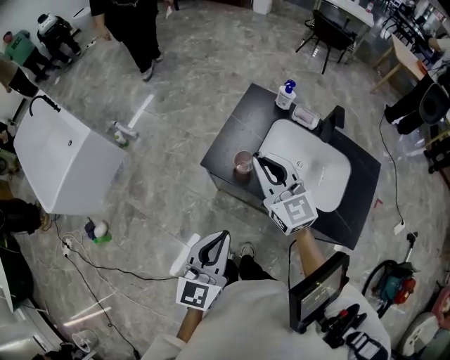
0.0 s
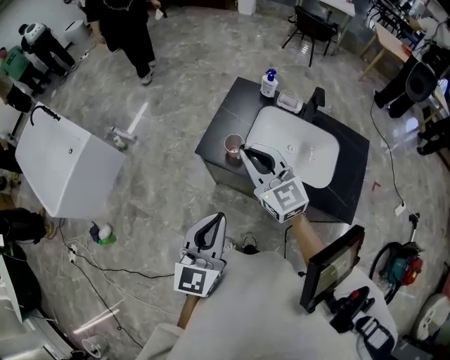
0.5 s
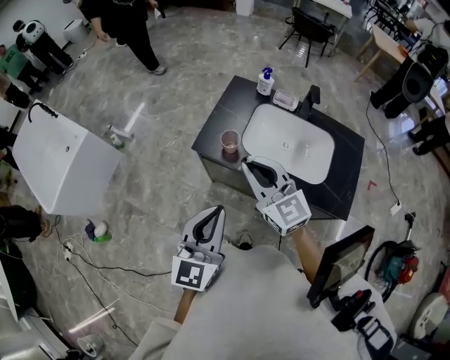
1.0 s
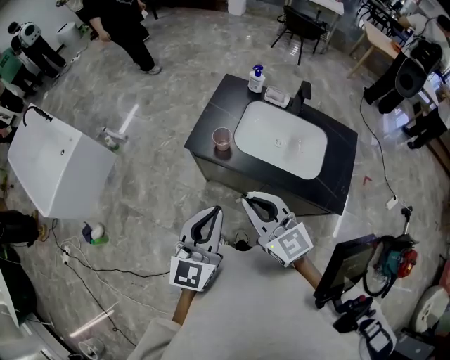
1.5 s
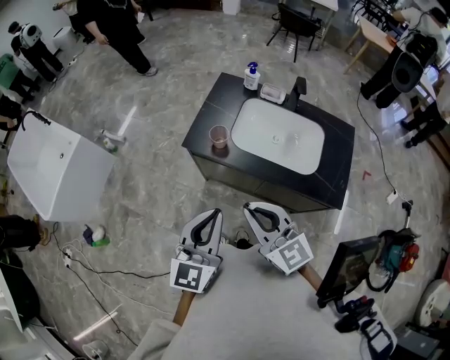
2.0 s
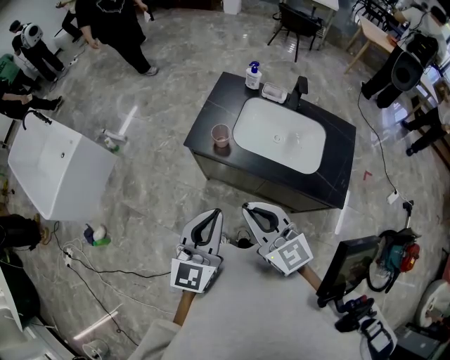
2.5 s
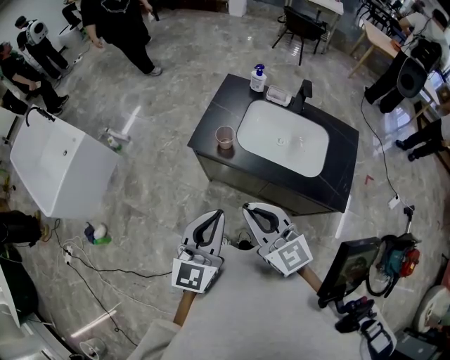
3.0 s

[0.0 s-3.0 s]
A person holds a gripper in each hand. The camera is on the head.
0.0 to 1.5 s: The left gripper heads backward, covering approximately 5 cm, while the right gripper heads backward, covering some 20 cm.
1.5 to 3.0 s: There are only small adjustments of the grippers.

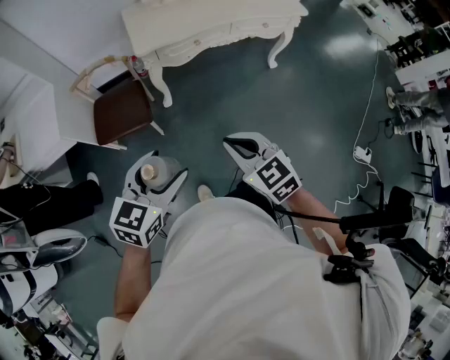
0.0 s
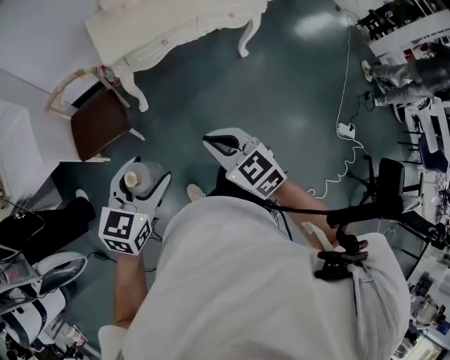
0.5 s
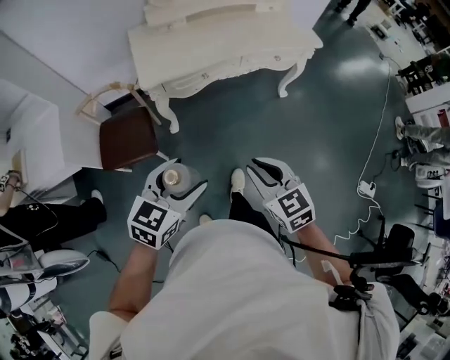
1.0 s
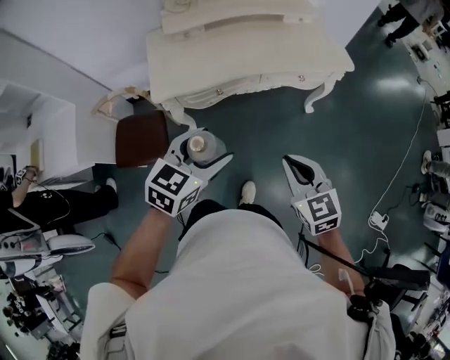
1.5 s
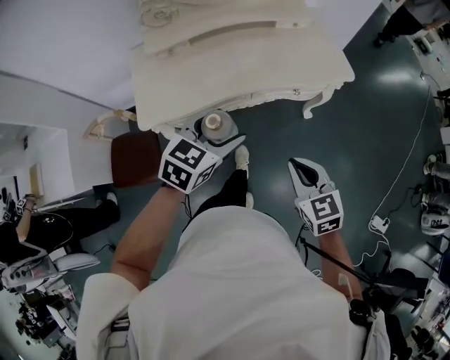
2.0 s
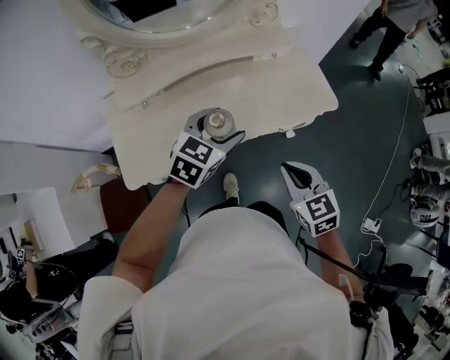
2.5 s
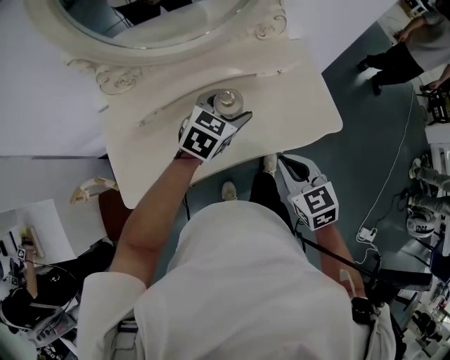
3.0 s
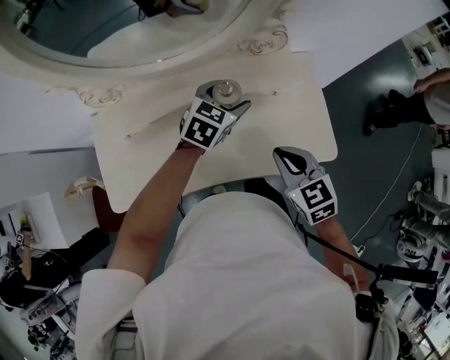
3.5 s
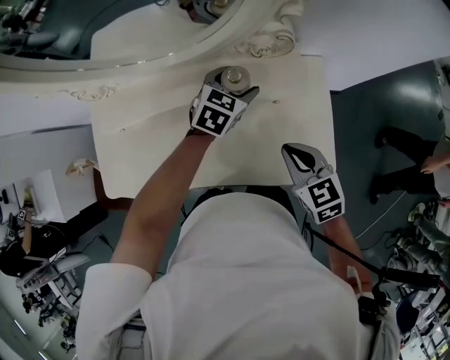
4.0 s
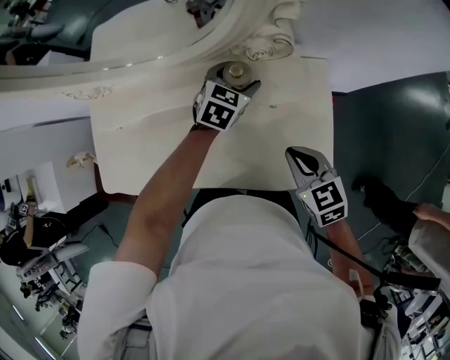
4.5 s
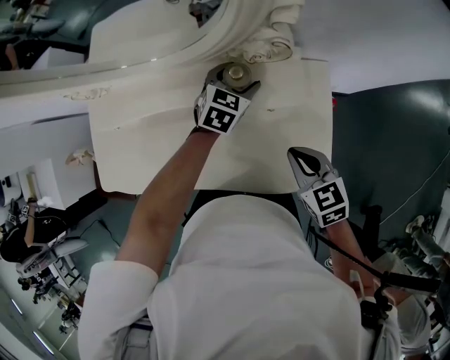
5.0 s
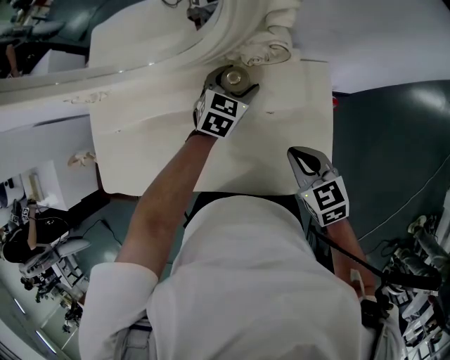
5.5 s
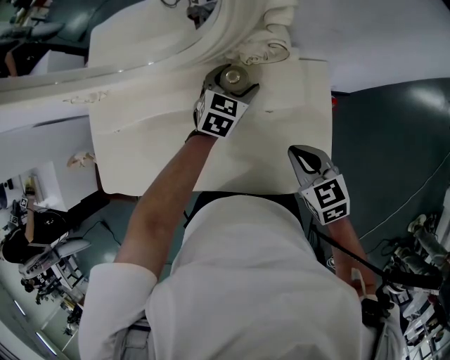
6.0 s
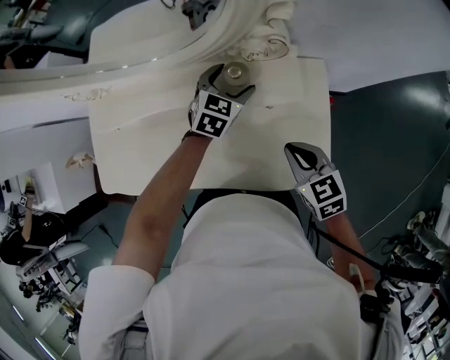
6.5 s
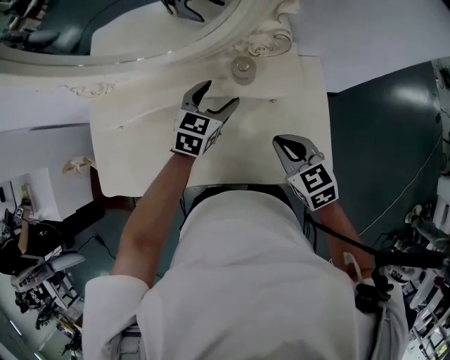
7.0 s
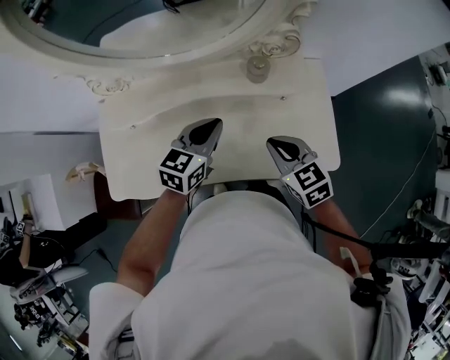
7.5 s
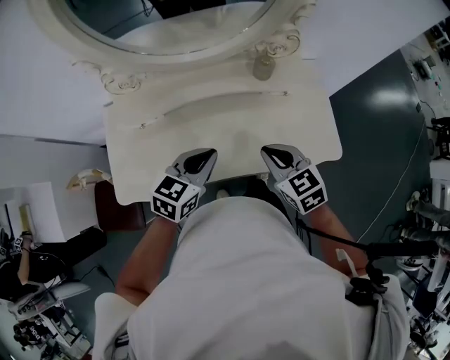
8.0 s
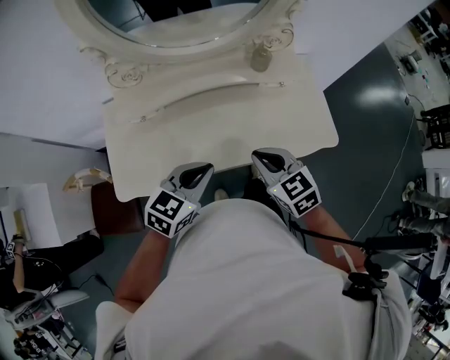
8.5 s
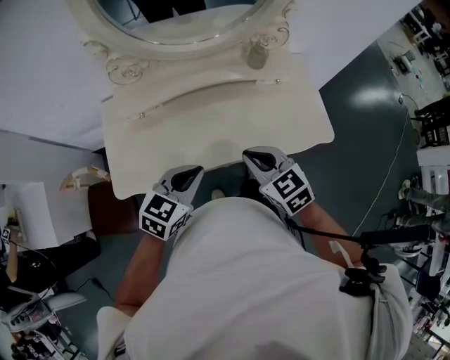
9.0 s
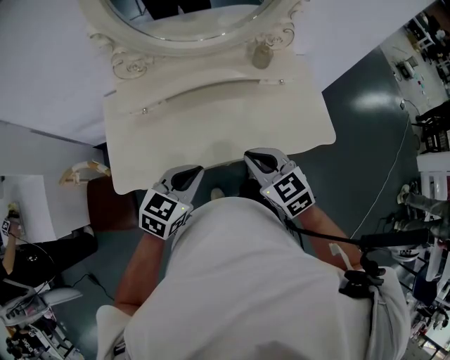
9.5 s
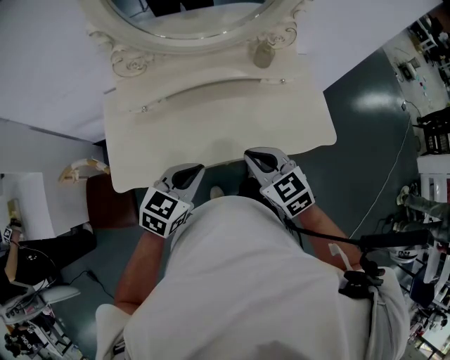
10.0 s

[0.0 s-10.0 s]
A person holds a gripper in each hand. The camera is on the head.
0.0 to 2.0 s: The two grippers travel together, forward and to the right, roughly 50 cm.
2.0 to 4.0 s: The pair of grippers is taken forward, about 60 cm.
4.0 to 6.0 s: The right gripper is displaced to the right by roughly 5 cm; the left gripper travels downward by some 5 cm.
6.0 to 8.0 s: The right gripper moves to the left and backward, approximately 25 cm. The left gripper travels backward and to the left by approximately 40 cm, swivels some 20 degrees, and closes up.
8.0 to 10.0 s: The grippers both shift backward and to the left by roughly 10 cm.

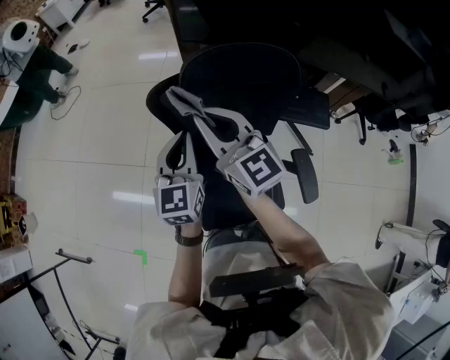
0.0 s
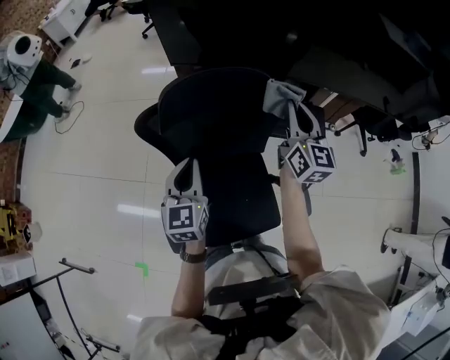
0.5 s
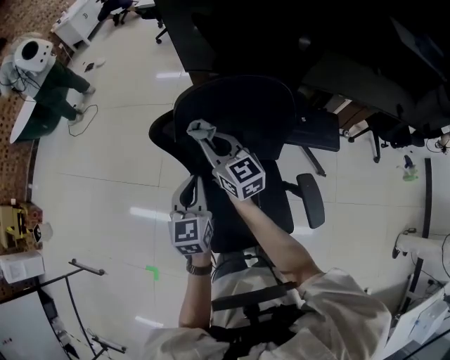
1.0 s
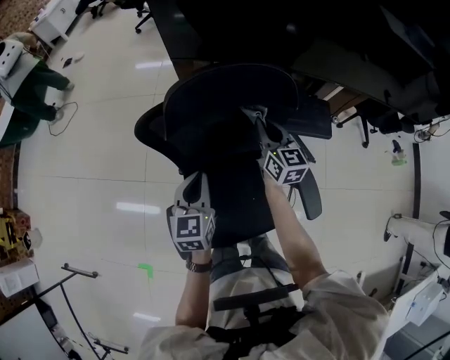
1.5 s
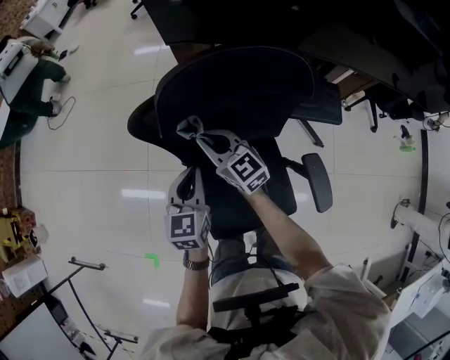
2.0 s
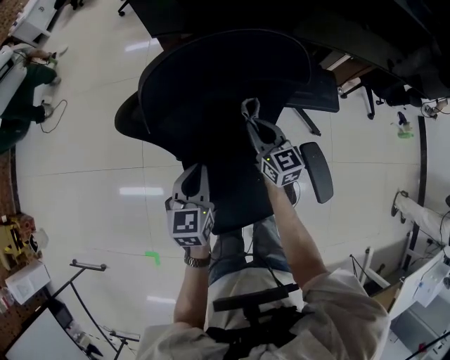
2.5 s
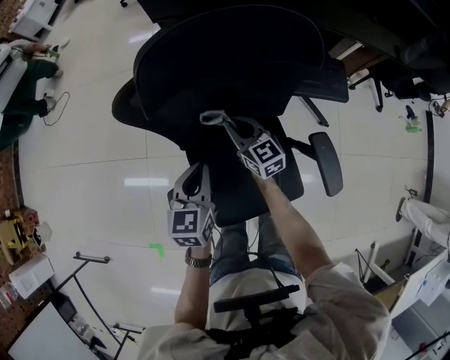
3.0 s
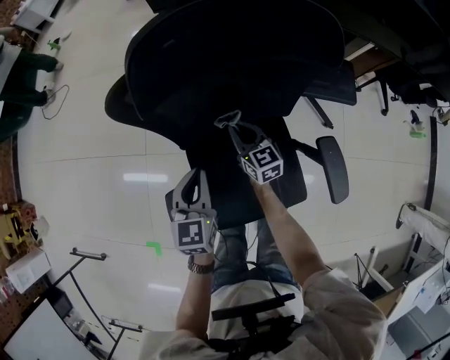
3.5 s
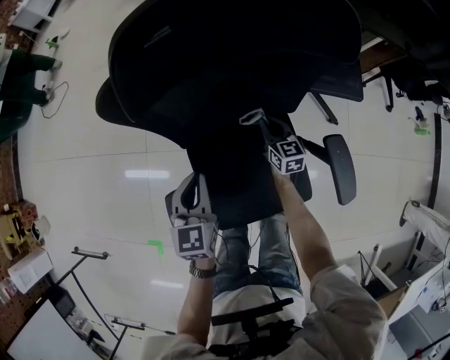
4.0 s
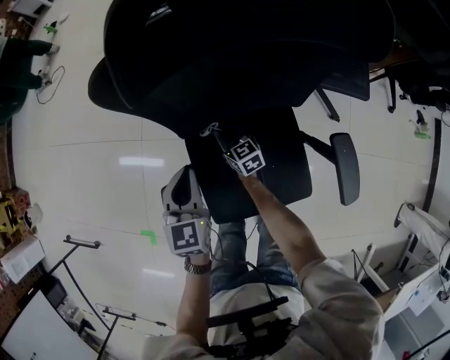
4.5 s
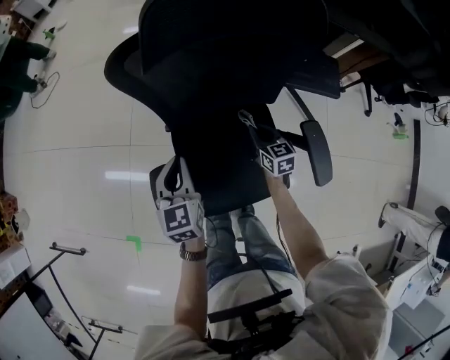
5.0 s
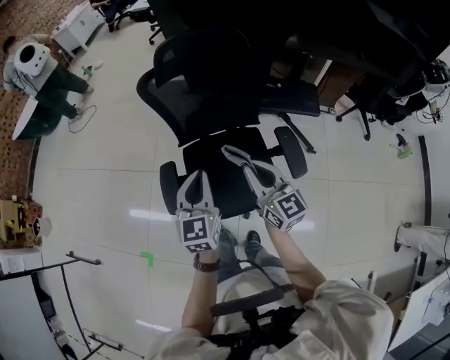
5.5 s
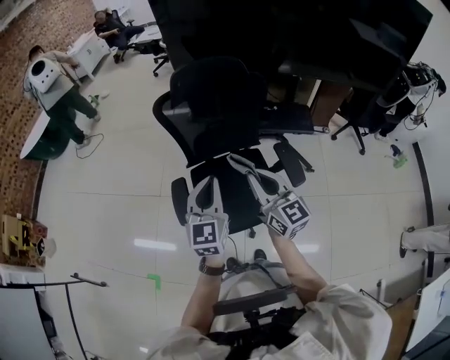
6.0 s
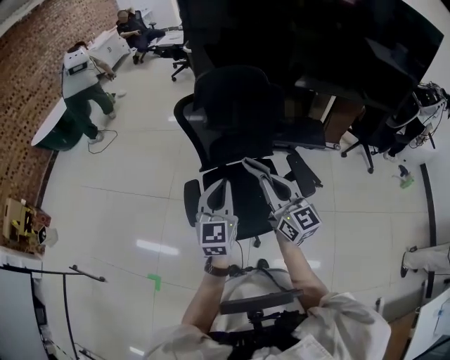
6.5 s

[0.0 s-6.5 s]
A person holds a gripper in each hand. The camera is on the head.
0.0 to 2.0 s: The right gripper swings left and right, some 30 cm each way, with 3 reversals, while the left gripper travels downward by approximately 15 cm.
2.0 to 4.5 s: The right gripper travels downward by some 30 cm, and changes its angle by approximately 20 degrees, while the left gripper travels downward by some 10 cm.
4.5 to 6.5 s: The left gripper travels upward and backward by approximately 40 cm, and changes its angle by approximately 30 degrees; the right gripper goes approximately 60 cm upward and backward, and tips its fingers upward by about 40 degrees.

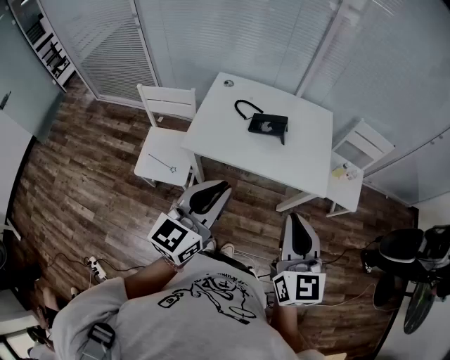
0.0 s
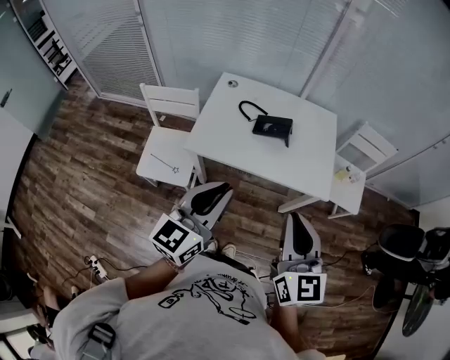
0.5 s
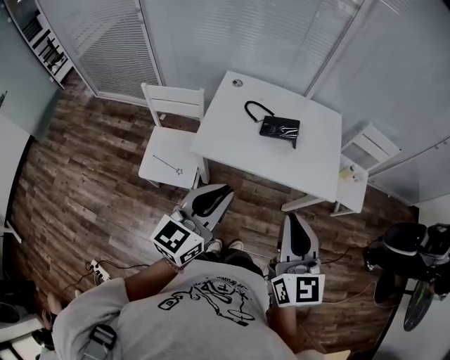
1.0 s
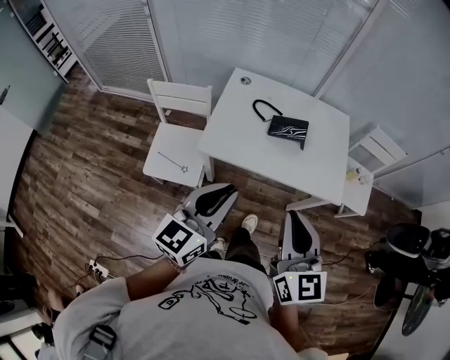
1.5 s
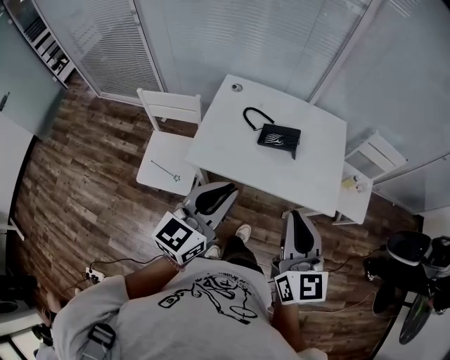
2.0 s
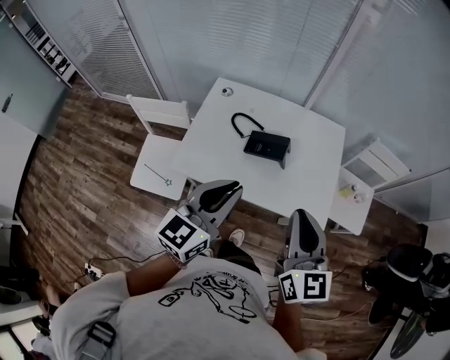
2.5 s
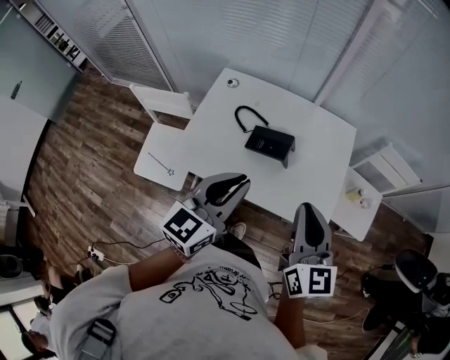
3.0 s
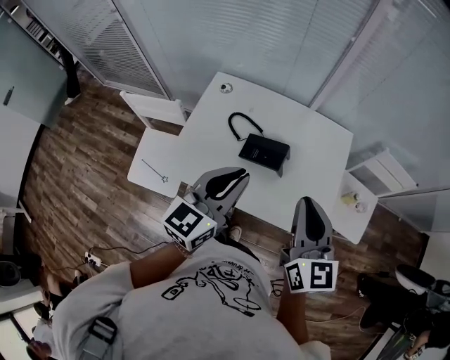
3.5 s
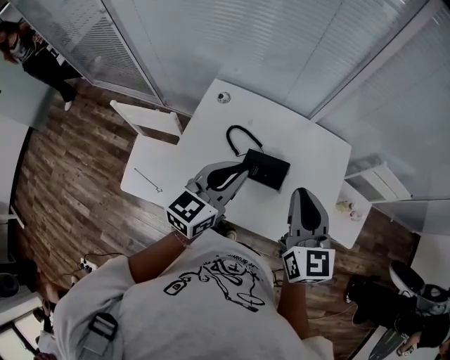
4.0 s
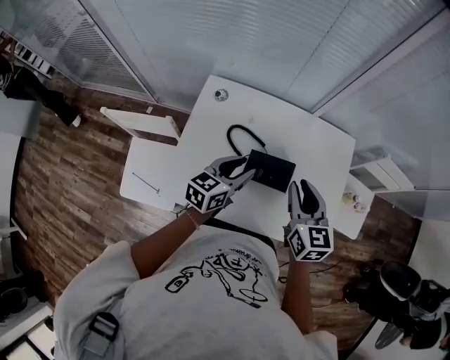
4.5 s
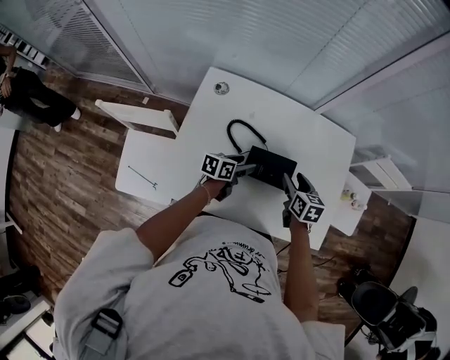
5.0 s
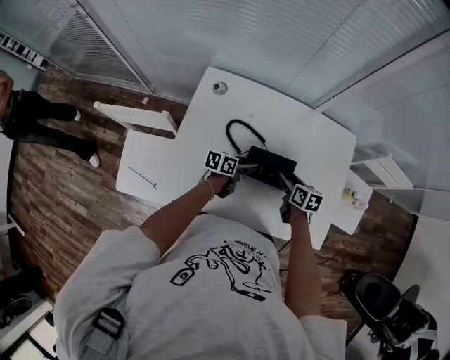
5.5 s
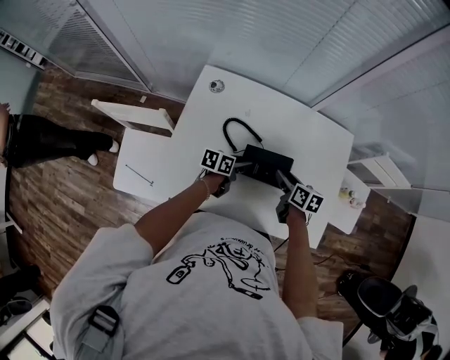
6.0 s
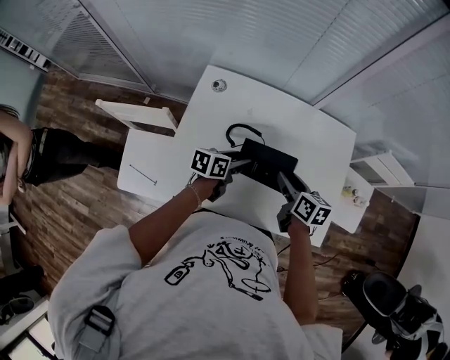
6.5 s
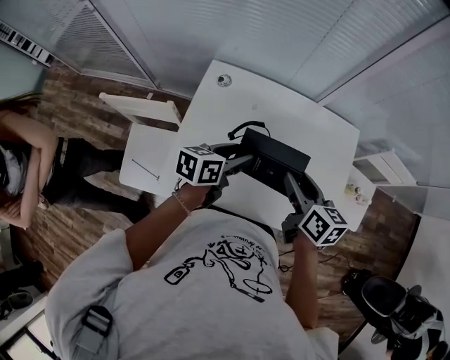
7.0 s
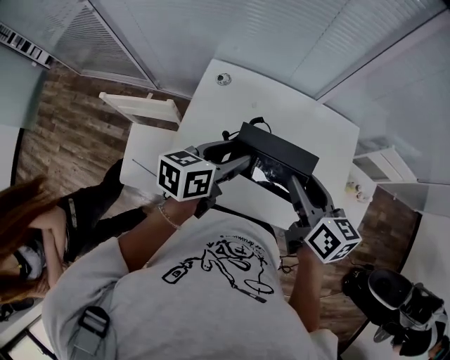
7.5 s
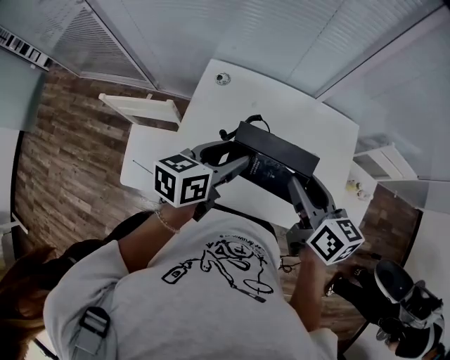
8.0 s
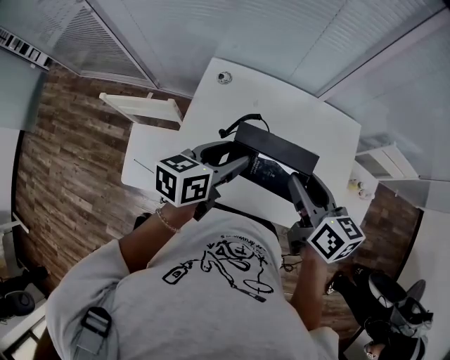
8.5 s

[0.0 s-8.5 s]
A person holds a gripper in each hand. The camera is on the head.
0.0 to 2.0 s: The left gripper heads forward, covering about 10 cm. Meanwhile the right gripper shifts roughly 15 cm forward and to the left.
2.0 to 4.0 s: The two grippers go roughly 30 cm forward.
4.0 to 6.5 s: The grippers both shift downward by roughly 25 cm. The left gripper rotates about 50 degrees, and opens. Meanwhile the right gripper rotates about 40 degrees, and opens.
6.5 to 8.5 s: The grippers both shift upward by some 20 cm.
